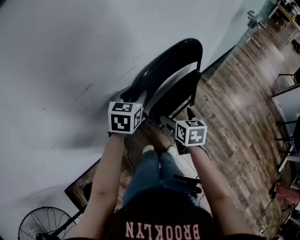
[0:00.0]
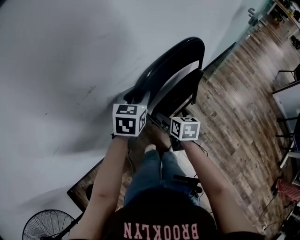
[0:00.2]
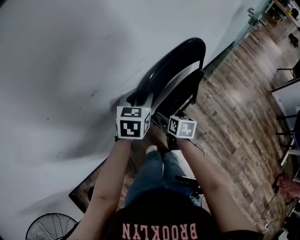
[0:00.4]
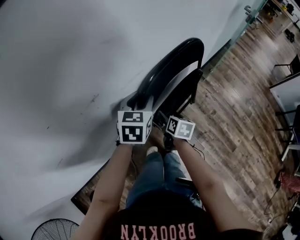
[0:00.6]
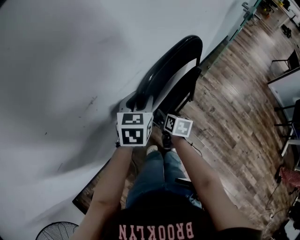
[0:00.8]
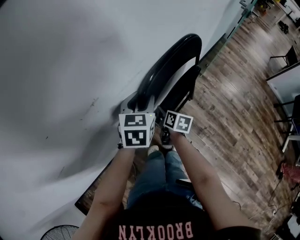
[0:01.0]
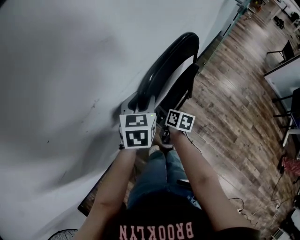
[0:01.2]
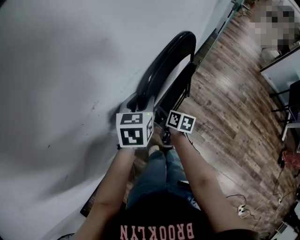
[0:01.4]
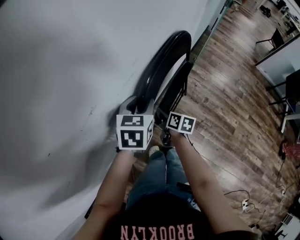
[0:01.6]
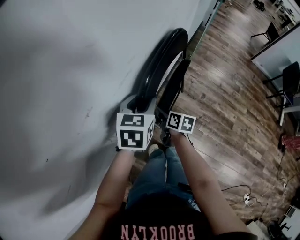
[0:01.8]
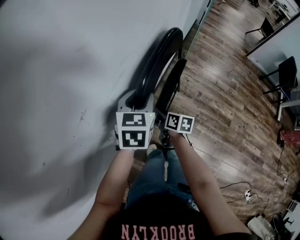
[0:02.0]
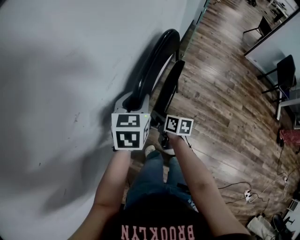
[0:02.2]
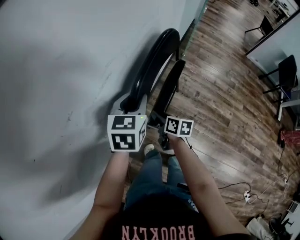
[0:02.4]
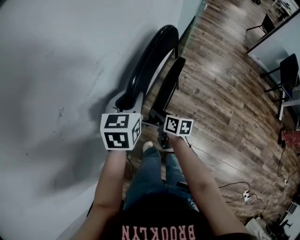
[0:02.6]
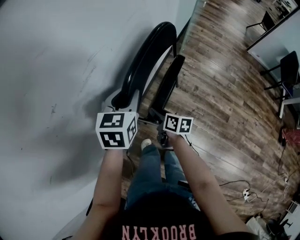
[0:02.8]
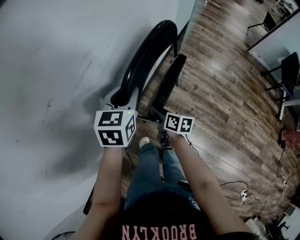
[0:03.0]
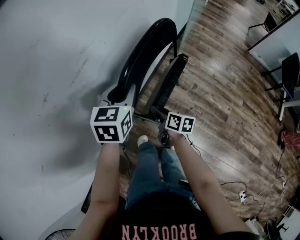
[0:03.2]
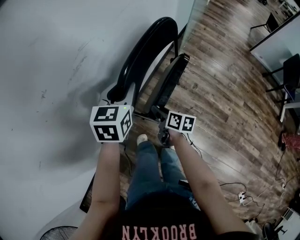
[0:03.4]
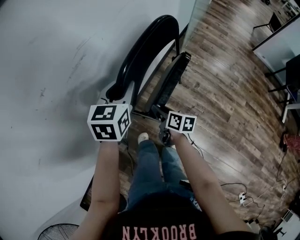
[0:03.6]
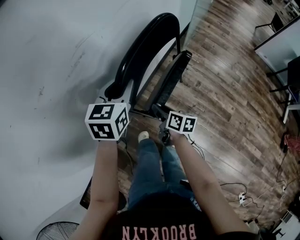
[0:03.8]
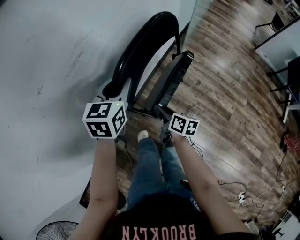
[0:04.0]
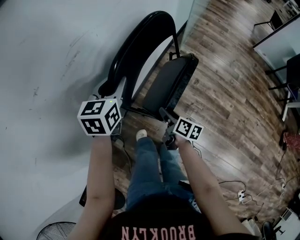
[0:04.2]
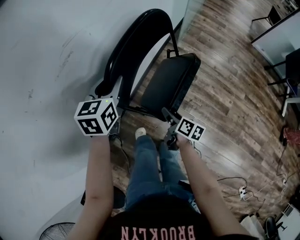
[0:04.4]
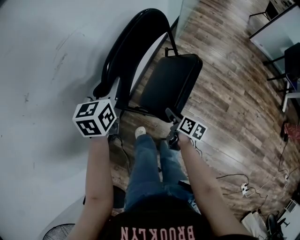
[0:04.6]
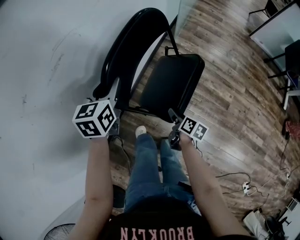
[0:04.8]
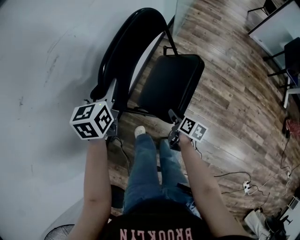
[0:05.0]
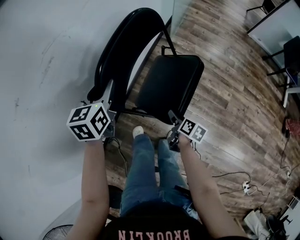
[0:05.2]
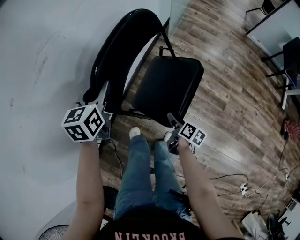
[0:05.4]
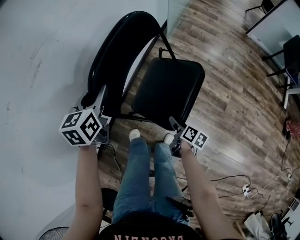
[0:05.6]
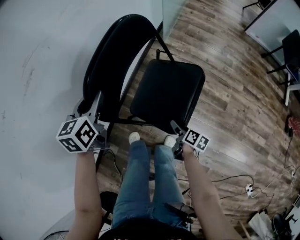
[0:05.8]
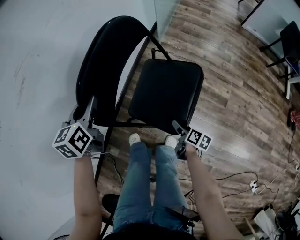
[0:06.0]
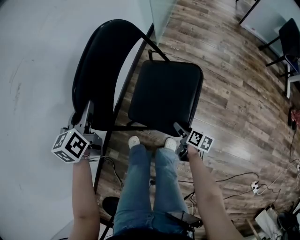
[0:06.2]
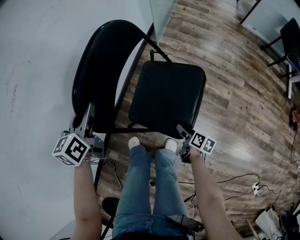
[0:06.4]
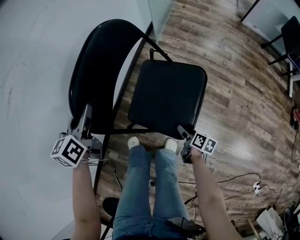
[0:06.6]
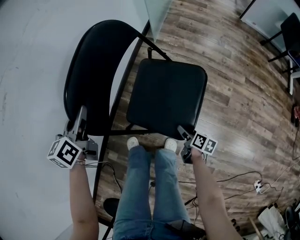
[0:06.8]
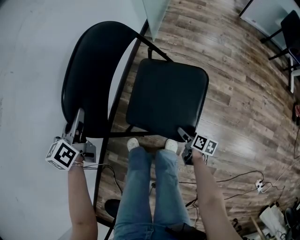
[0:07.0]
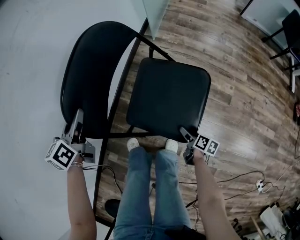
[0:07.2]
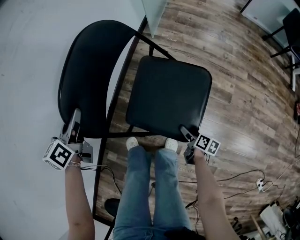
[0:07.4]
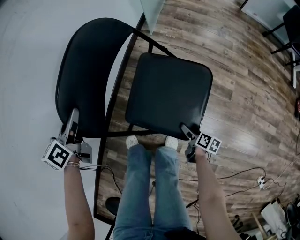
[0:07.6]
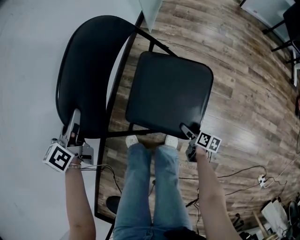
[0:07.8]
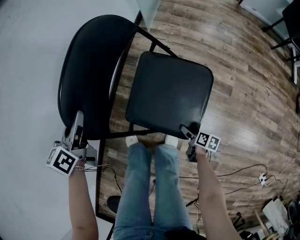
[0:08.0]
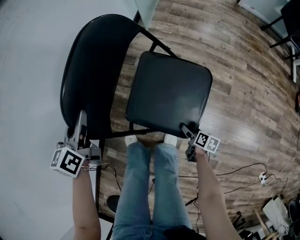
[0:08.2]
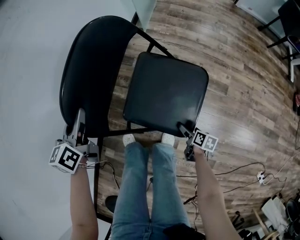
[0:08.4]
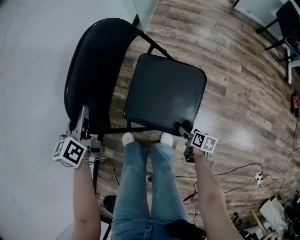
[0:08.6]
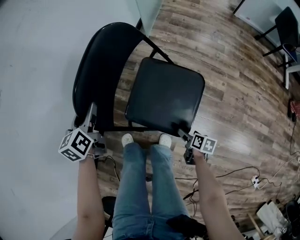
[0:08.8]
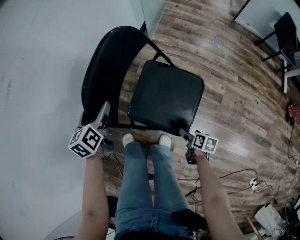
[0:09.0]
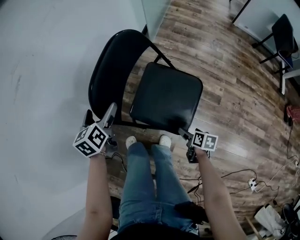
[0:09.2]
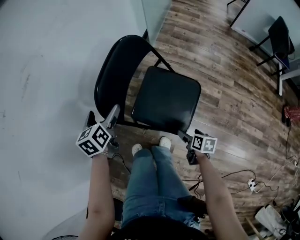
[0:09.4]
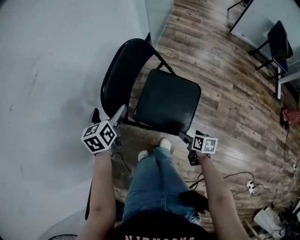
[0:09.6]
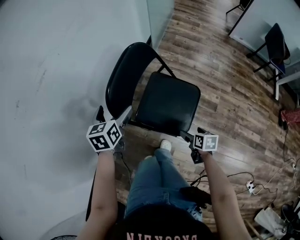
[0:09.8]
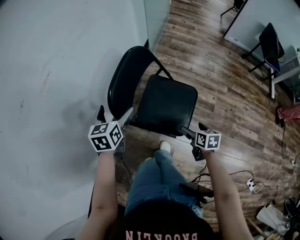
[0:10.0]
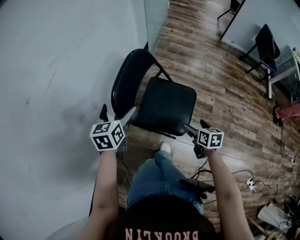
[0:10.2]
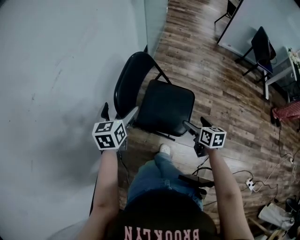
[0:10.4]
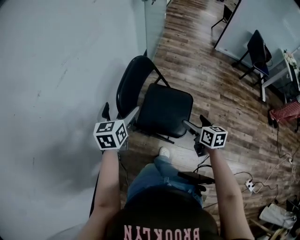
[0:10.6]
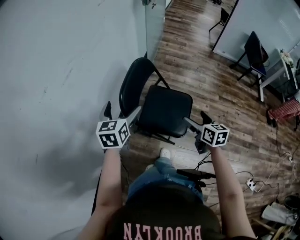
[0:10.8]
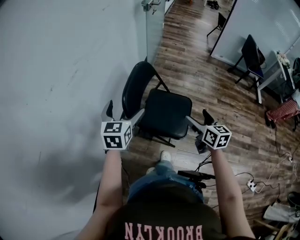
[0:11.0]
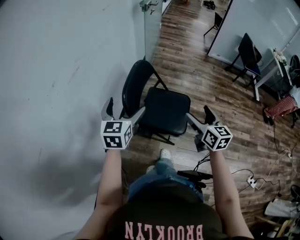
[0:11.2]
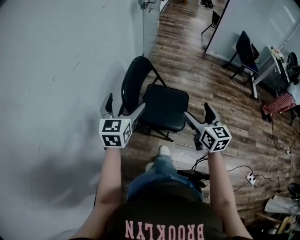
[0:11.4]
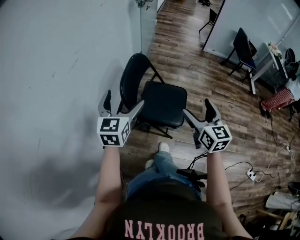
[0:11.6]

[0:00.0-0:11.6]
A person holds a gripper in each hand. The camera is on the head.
0:00.0 to 0:01.4: The right gripper is displaced downward and to the left by approximately 10 cm, turns by approximately 30 degrees, and closes.
0:01.4 to 0:02.8: The right gripper goes about 10 cm to the right and backward, while the left gripper is displaced to the right by roughly 10 cm.
0:02.8 to 0:04.4: The right gripper travels to the right and backward by approximately 15 cm.
0:04.4 to 0:05.8: The right gripper shifts about 20 cm to the right, downward and backward. Meanwhile the left gripper shifts some 5 cm downward.
0:05.8 to 0:07.2: The left gripper is displaced downward by approximately 10 cm; the right gripper travels downward and to the right by some 15 cm.
0:07.2 to 0:08.8: The left gripper shifts by about 5 cm; the right gripper shifts roughly 5 cm backward.
0:08.8 to 0:10.2: The right gripper moves upward, about 30 cm, and swivels roughly 30 degrees. The left gripper is displaced upward and backward by some 15 cm, and opens.
0:10.2 to 0:11.6: The right gripper heads upward, covering roughly 25 cm, and tips its fingers upward by some 30 degrees. The left gripper goes about 20 cm upward and backward, and turns by approximately 30 degrees.

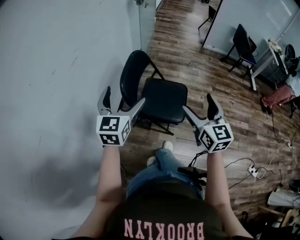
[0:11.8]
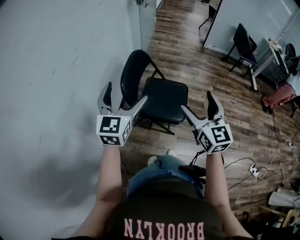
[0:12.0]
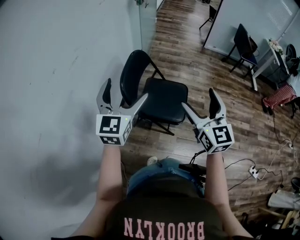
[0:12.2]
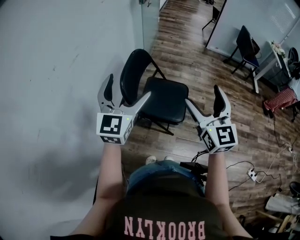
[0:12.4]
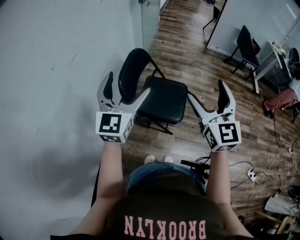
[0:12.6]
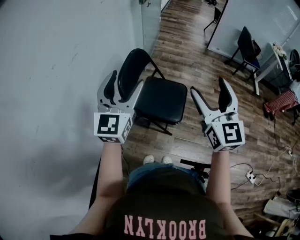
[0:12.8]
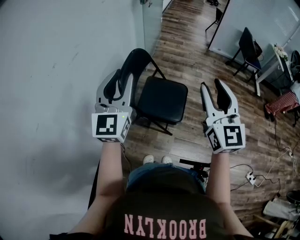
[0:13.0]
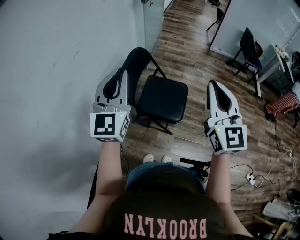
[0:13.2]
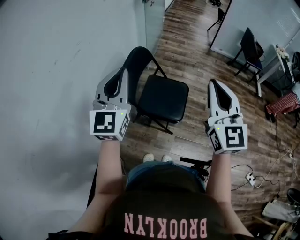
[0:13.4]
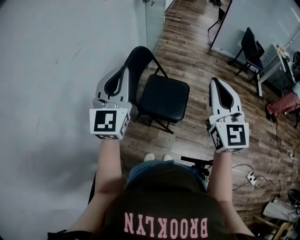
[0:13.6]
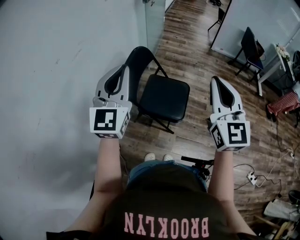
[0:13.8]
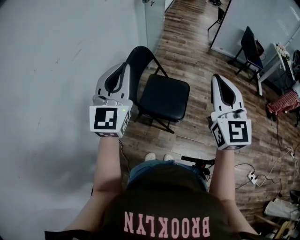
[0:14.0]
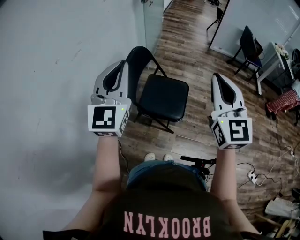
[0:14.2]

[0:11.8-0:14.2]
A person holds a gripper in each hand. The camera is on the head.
0:11.8 to 0:13.0: The grippers both shift upward by roughly 10 cm. The left gripper swivels approximately 20 degrees, and closes up. Meanwhile the right gripper closes.
0:13.0 to 0:14.2: There are only small adjustments of the grippers.

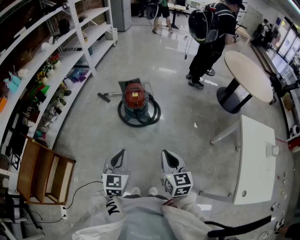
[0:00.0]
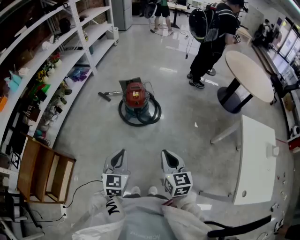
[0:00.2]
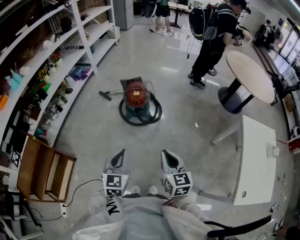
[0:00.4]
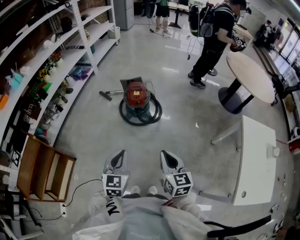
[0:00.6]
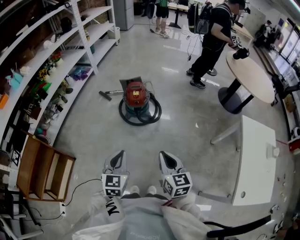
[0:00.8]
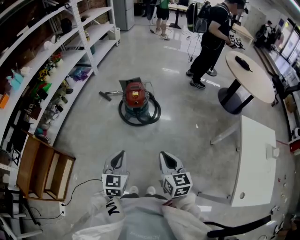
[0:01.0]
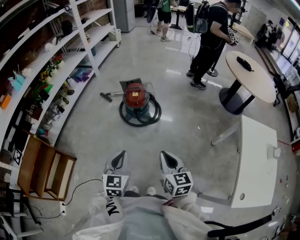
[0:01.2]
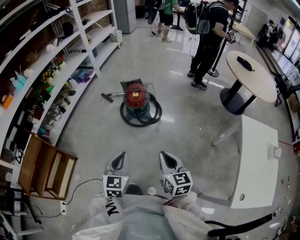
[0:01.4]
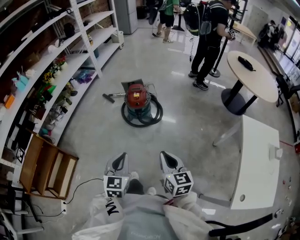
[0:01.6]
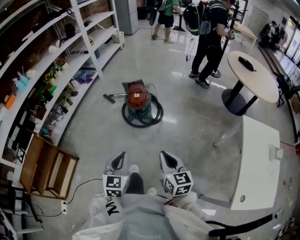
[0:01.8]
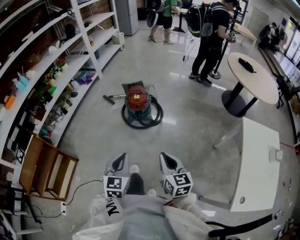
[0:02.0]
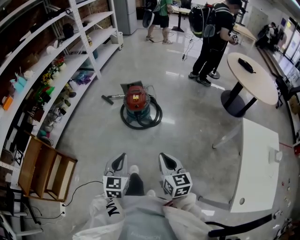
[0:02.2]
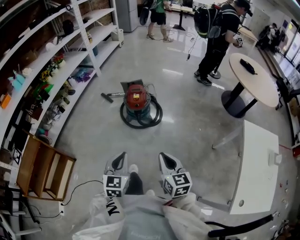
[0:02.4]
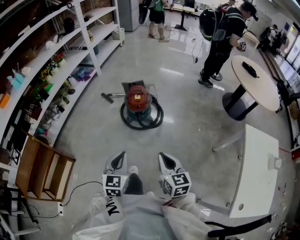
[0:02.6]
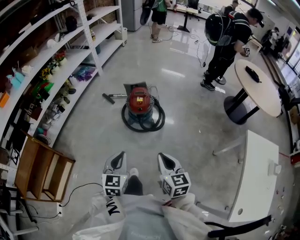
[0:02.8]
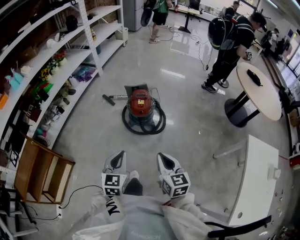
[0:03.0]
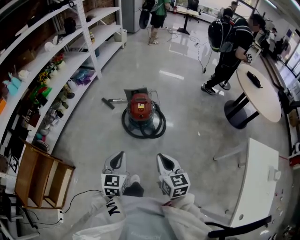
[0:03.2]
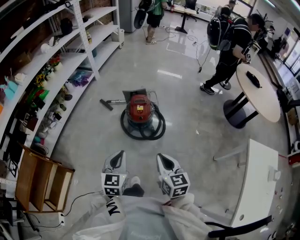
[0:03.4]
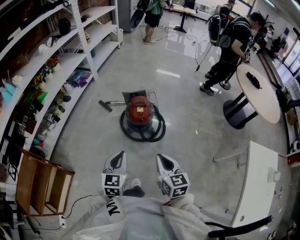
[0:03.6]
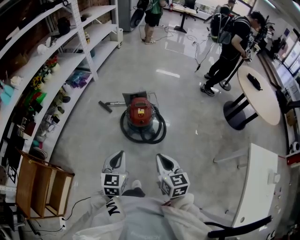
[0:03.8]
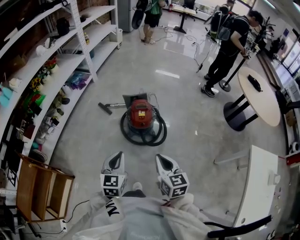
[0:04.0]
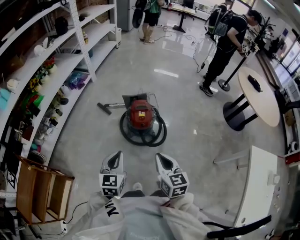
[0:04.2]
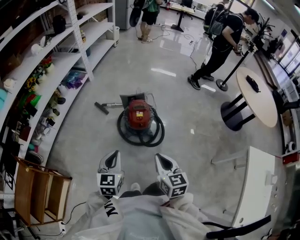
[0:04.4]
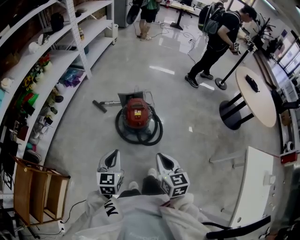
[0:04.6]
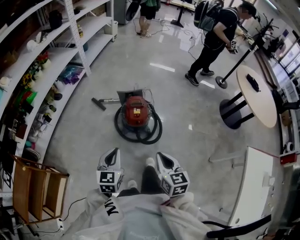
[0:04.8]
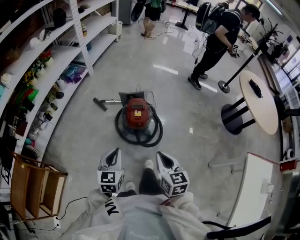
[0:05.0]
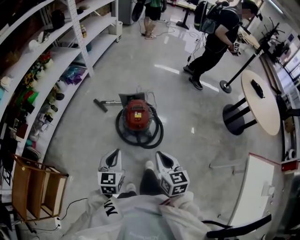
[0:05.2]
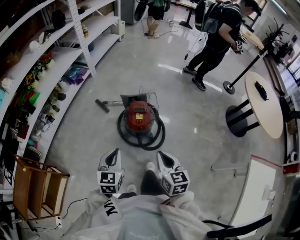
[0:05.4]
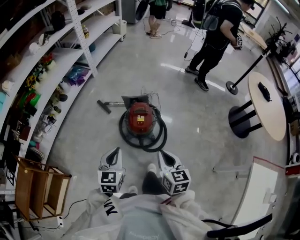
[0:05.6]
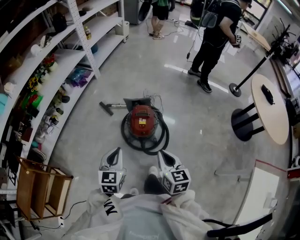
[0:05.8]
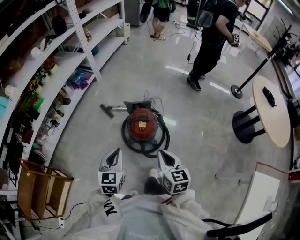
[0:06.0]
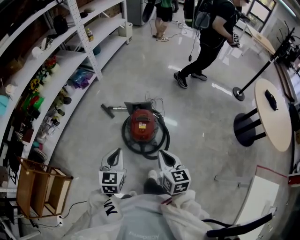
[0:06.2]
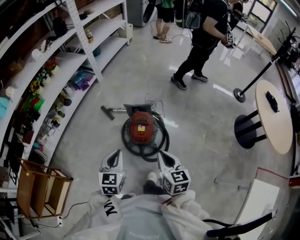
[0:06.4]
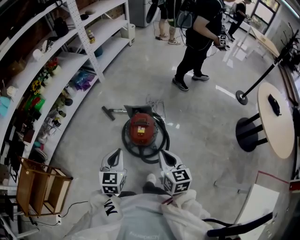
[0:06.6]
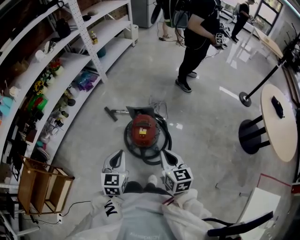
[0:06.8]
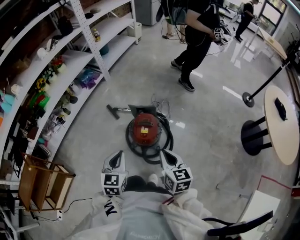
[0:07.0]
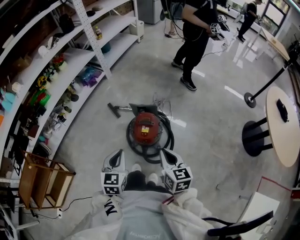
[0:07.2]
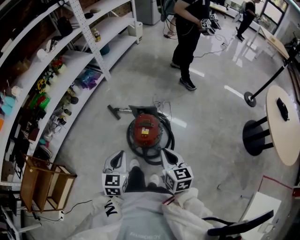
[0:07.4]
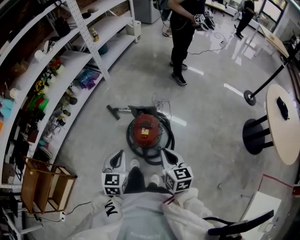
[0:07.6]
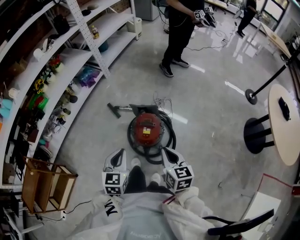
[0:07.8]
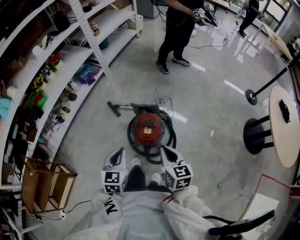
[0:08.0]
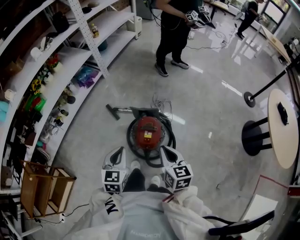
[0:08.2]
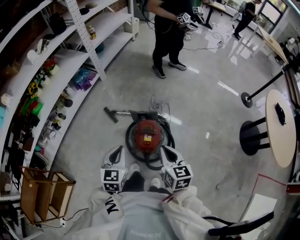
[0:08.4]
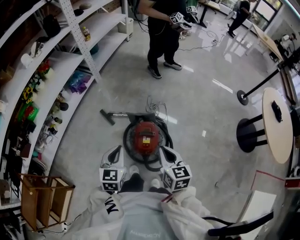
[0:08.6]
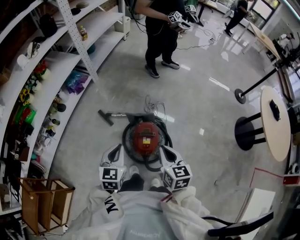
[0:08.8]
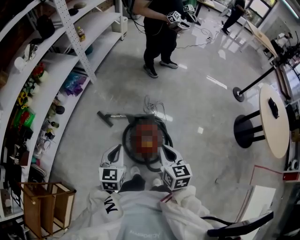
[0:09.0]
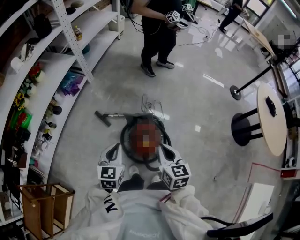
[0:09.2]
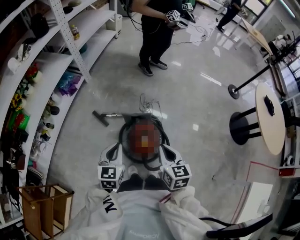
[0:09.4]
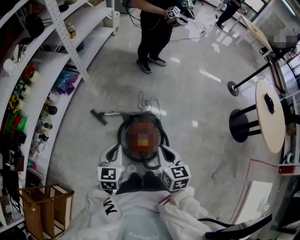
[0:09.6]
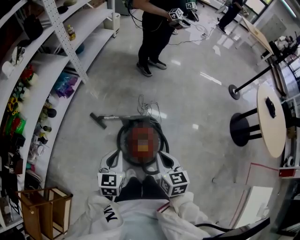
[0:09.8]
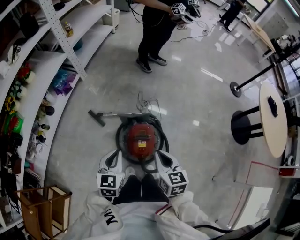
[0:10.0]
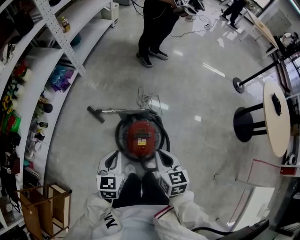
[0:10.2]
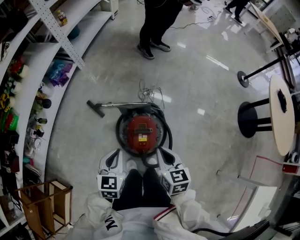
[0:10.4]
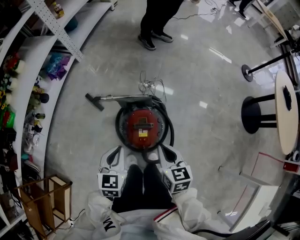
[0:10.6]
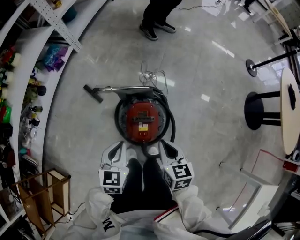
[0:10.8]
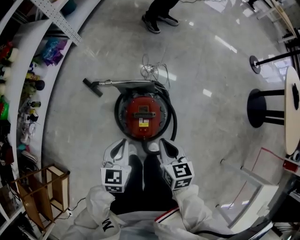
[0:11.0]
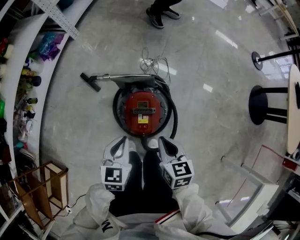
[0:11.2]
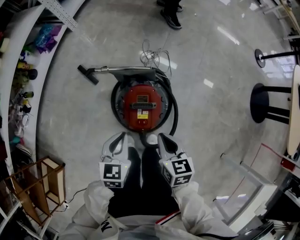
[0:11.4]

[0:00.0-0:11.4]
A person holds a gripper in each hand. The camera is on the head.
0:00.0 to 0:01.4: The left gripper ends up roughly 5 cm from where it was.
0:01.4 to 0:02.8: The two grippers go approximately 10 cm forward.
0:02.8 to 0:04.2: Both grippers travel together forward, approximately 15 cm.
0:04.2 to 0:05.6: The left gripper goes roughly 10 cm forward; the right gripper heads forward and to the right, covering some 10 cm.
0:05.6 to 0:07.2: The grippers both shift forward and to the right by approximately 10 cm.
0:07.2 to 0:08.6: Both grippers move forward, roughly 10 cm.
0:08.6 to 0:10.0: The right gripper ends up roughly 5 cm from where it was, while the left gripper shifts by some 5 cm.
0:10.0 to 0:11.4: Both grippers move downward, roughly 15 cm.
